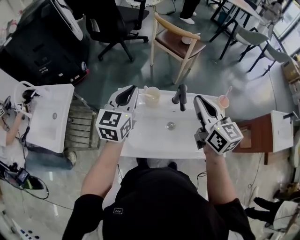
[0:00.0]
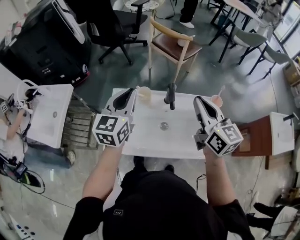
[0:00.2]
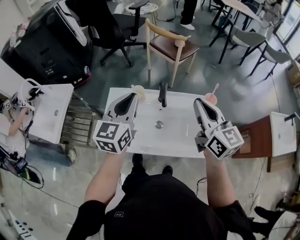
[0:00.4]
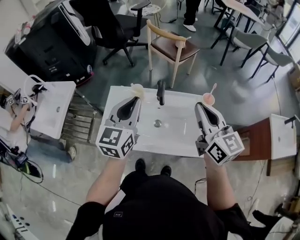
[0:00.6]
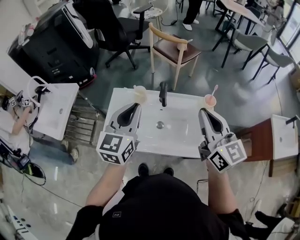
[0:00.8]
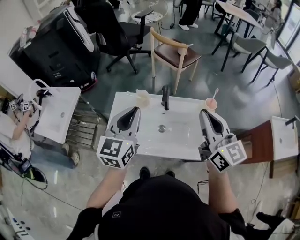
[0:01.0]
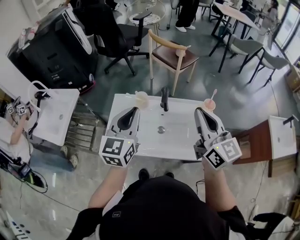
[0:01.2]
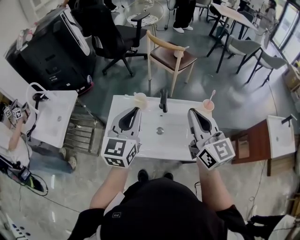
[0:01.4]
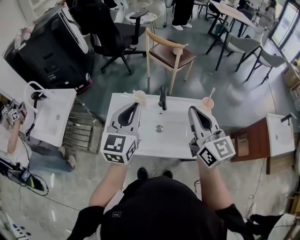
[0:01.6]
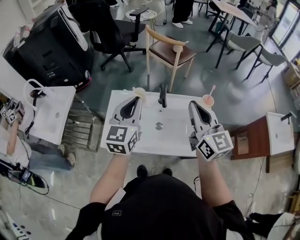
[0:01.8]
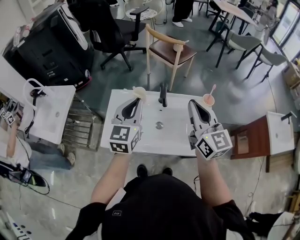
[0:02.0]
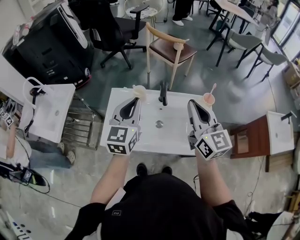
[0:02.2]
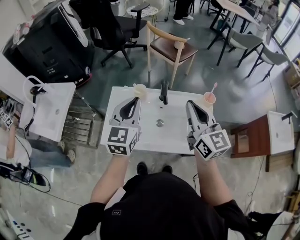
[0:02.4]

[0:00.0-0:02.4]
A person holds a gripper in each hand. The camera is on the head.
0:00.0 to 0:01.2: Both grippers travel together backward, to the right and upward, approximately 20 cm.
0:01.2 to 0:02.4: The right gripper shifts by about 5 cm.

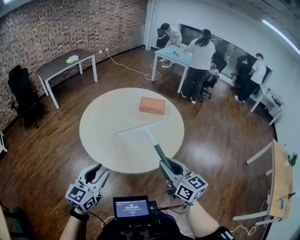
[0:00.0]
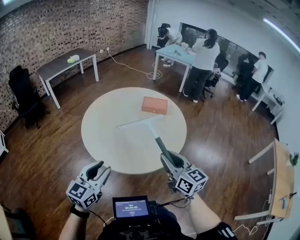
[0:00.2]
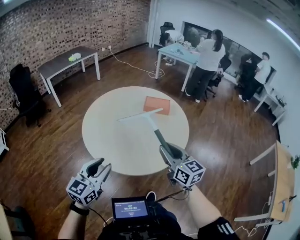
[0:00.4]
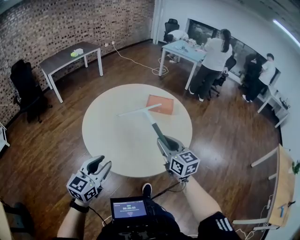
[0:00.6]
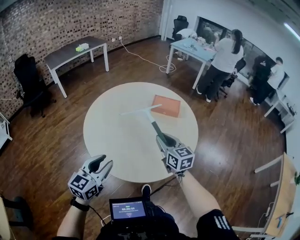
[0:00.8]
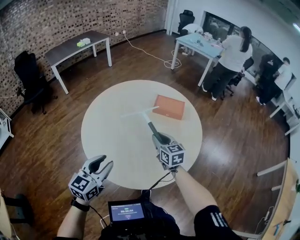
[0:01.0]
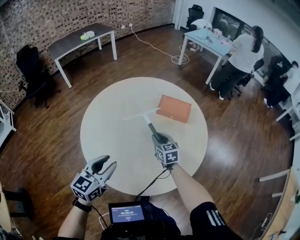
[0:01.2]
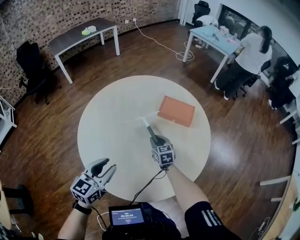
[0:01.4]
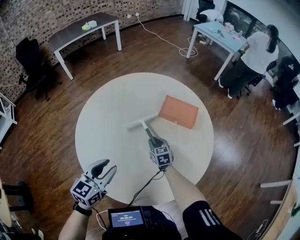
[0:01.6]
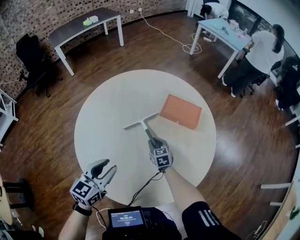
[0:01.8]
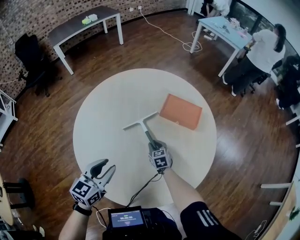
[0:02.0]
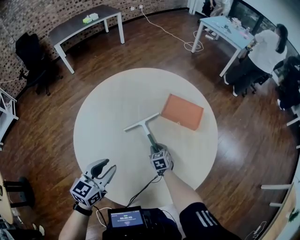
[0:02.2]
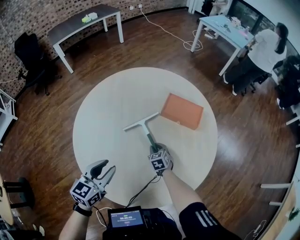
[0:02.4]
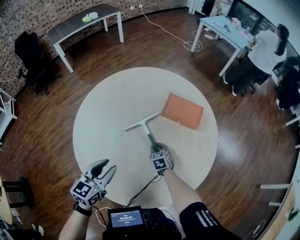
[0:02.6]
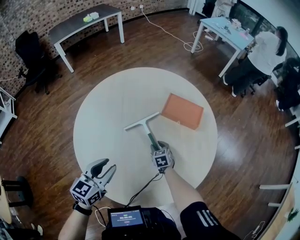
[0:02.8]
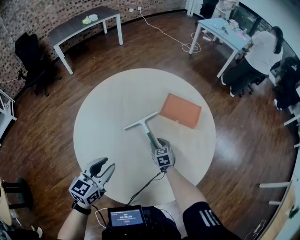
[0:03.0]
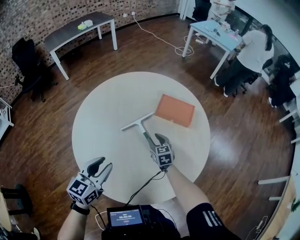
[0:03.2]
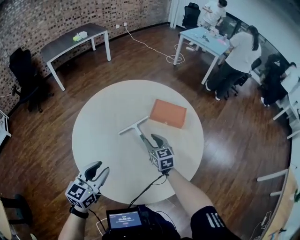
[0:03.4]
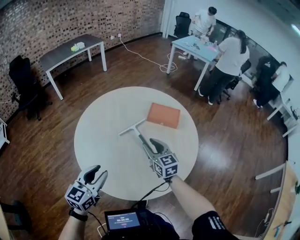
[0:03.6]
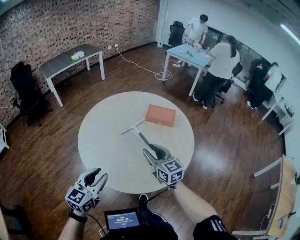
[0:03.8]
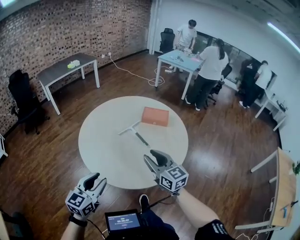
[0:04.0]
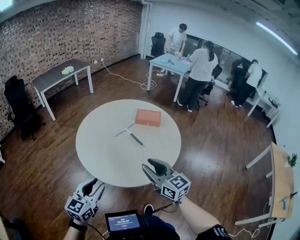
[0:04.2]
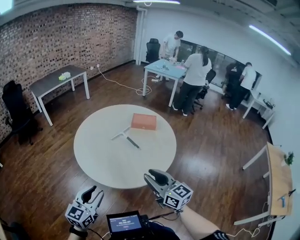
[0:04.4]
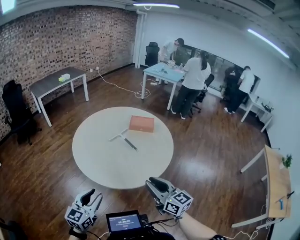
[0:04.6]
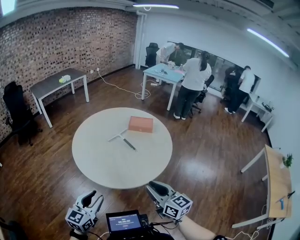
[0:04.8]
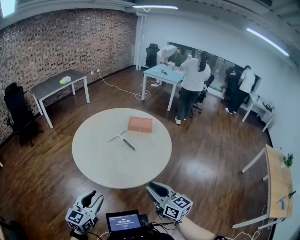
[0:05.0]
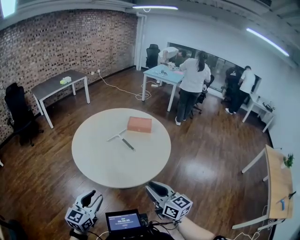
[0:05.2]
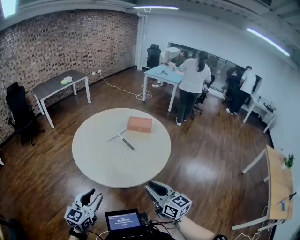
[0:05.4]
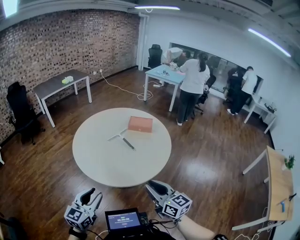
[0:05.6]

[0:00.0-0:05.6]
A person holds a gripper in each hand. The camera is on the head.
0:00.0 to 0:01.4: The left gripper travels forward and downward by about 30 cm, while the right gripper shifts about 60 cm forward and downward, and angles its fingers downward, by some 30 degrees.
0:01.4 to 0:02.8: The left gripper goes approximately 5 cm forward; the right gripper travels downward by roughly 10 cm.
0:02.8 to 0:04.2: The left gripper travels backward and upward by approximately 35 cm; the right gripper moves upward and backward, roughly 60 cm, and angles its fingers upward, by roughly 50 degrees.
0:04.2 to 0:05.6: The grippers both shift backward and to the right by approximately 15 cm.

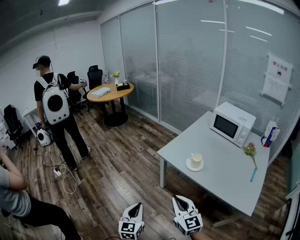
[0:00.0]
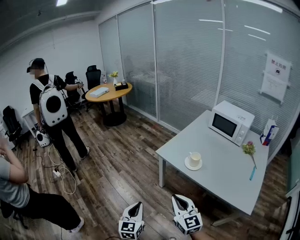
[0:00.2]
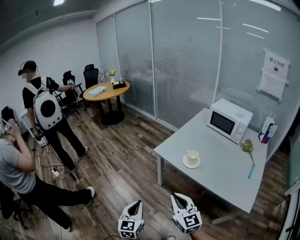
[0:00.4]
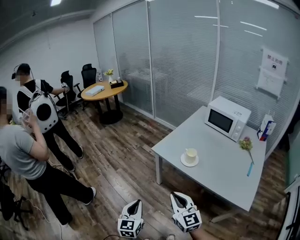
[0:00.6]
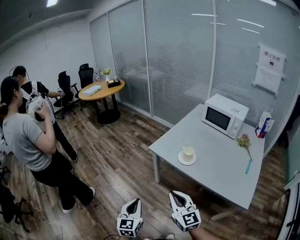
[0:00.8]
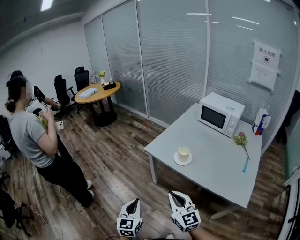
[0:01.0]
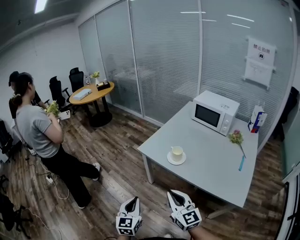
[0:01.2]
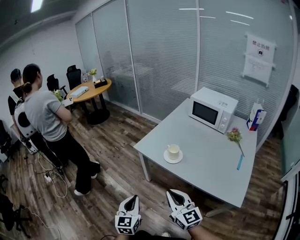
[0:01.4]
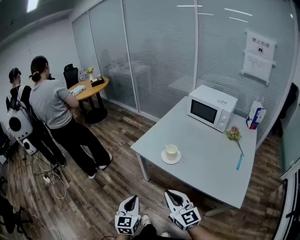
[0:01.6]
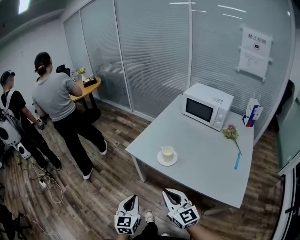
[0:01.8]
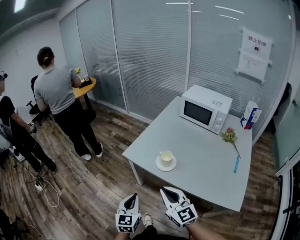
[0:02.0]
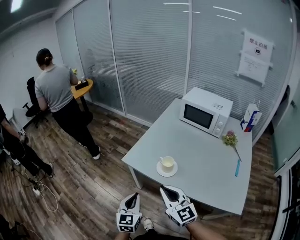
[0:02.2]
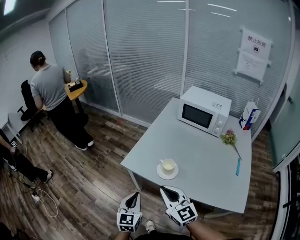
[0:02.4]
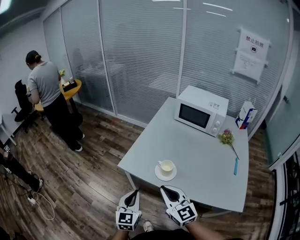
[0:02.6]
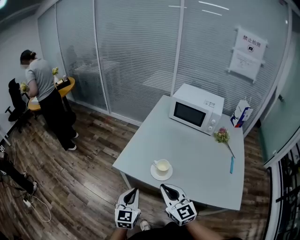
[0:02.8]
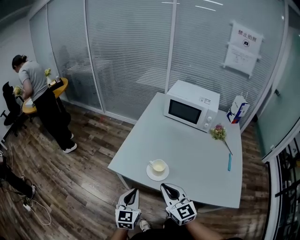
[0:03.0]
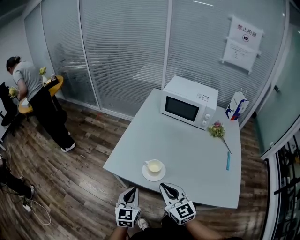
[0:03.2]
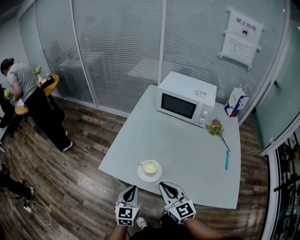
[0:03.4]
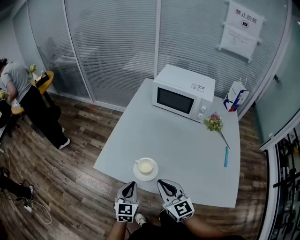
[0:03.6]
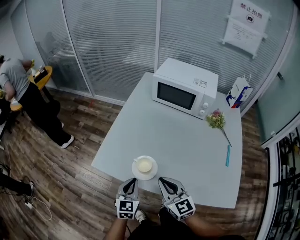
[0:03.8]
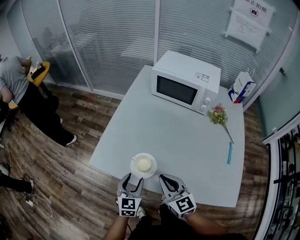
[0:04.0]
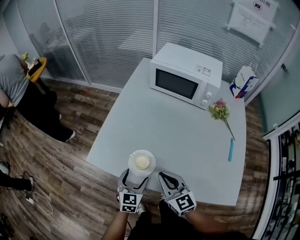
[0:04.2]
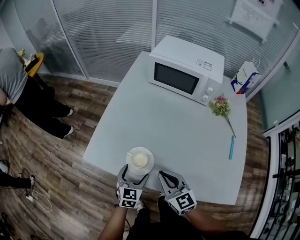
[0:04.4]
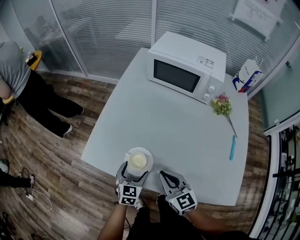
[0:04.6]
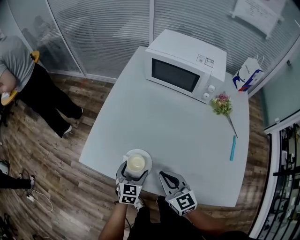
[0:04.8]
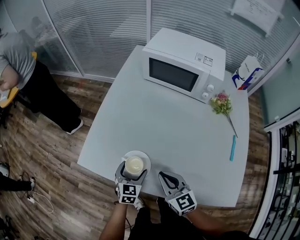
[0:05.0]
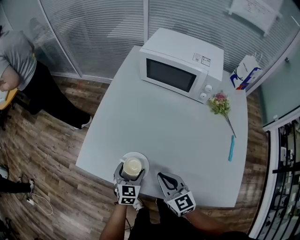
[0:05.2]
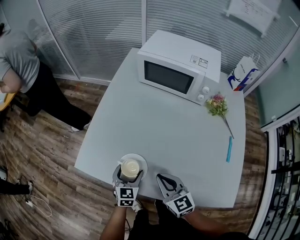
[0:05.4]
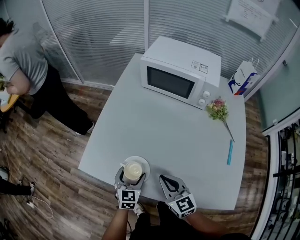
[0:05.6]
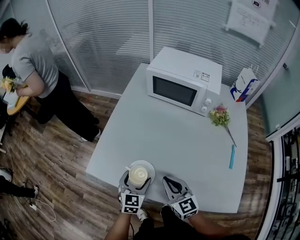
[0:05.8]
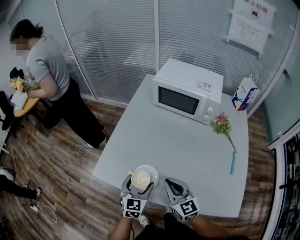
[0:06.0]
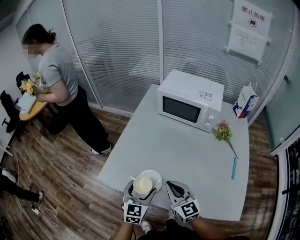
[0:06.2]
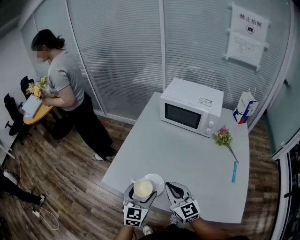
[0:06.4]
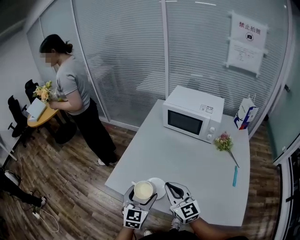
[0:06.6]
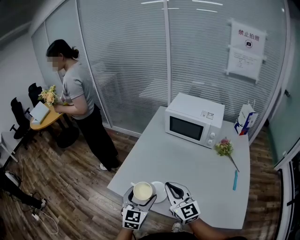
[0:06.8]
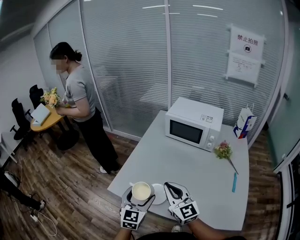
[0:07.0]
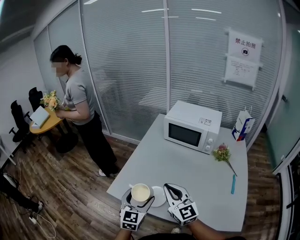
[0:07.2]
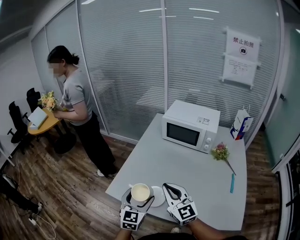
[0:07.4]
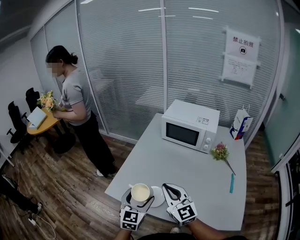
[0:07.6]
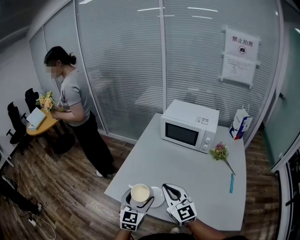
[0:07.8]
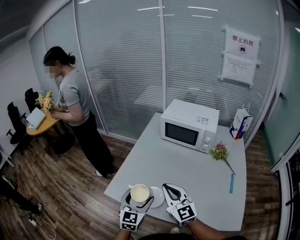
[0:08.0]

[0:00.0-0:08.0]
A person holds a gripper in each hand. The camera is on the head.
0:00.0 to 0:01.6: The two grippers go approximately 10 cm to the right.
0:01.6 to 0:03.2: The grippers both shift forward by about 20 cm.
0:03.2 to 0:04.8: The right gripper heads downward, to the right and forward, covering about 15 cm. Meanwhile the left gripper is displaced downward, forward and to the right by roughly 25 cm, turns by about 20 degrees, and opens.
0:04.8 to 0:06.4: The right gripper moves upward, about 10 cm. Meanwhile the left gripper moves upward, approximately 15 cm.
0:06.4 to 0:08.0: The right gripper travels upward by about 5 cm, while the left gripper shifts by approximately 5 cm.

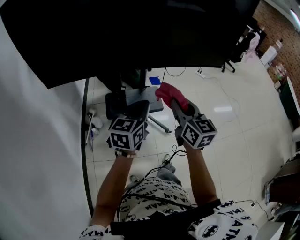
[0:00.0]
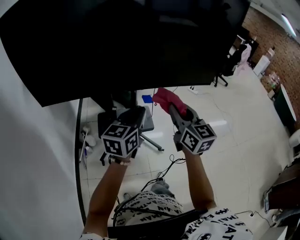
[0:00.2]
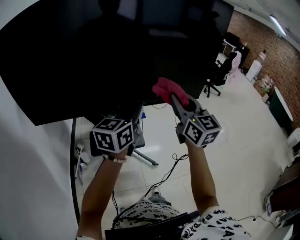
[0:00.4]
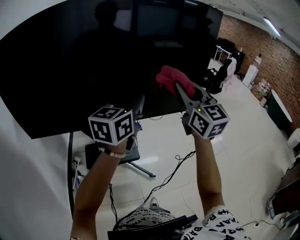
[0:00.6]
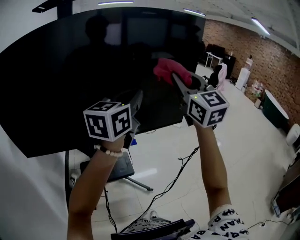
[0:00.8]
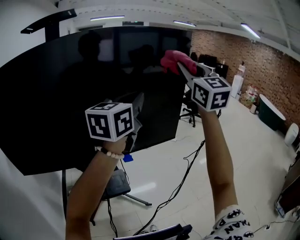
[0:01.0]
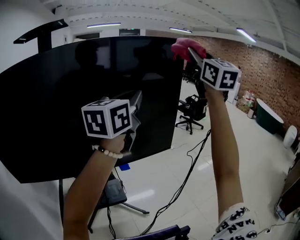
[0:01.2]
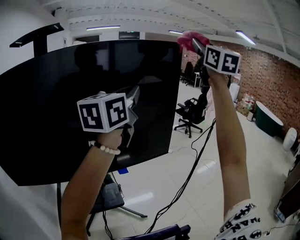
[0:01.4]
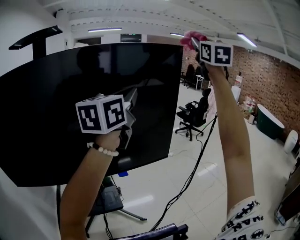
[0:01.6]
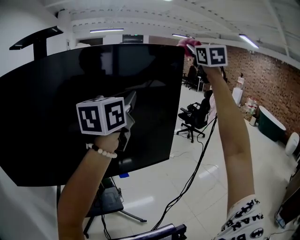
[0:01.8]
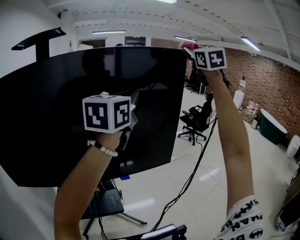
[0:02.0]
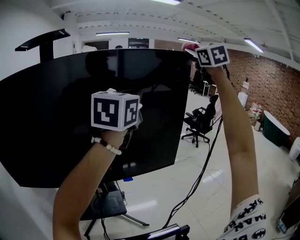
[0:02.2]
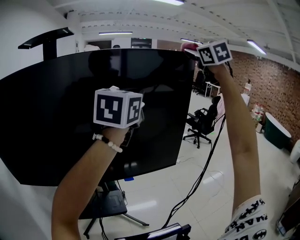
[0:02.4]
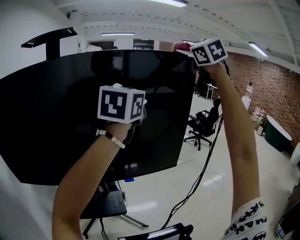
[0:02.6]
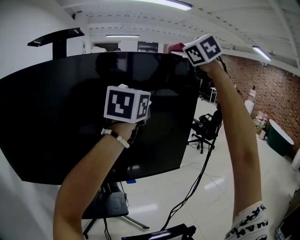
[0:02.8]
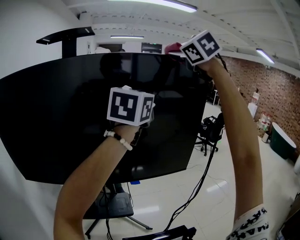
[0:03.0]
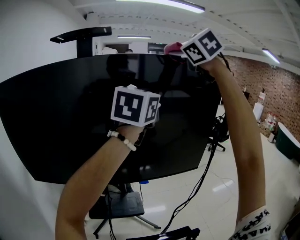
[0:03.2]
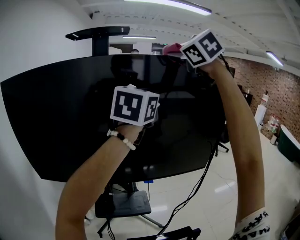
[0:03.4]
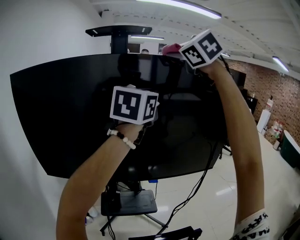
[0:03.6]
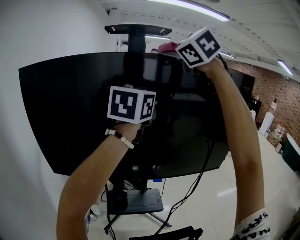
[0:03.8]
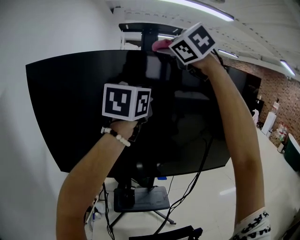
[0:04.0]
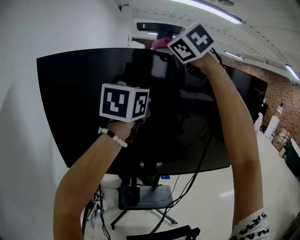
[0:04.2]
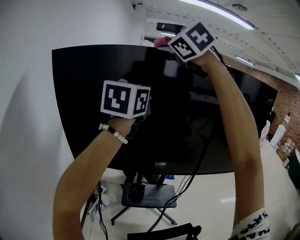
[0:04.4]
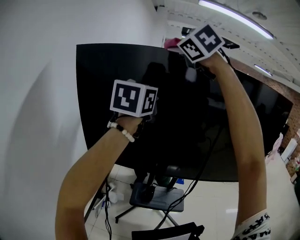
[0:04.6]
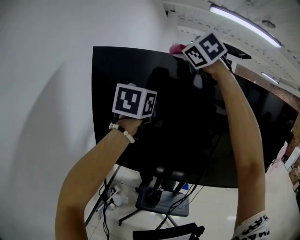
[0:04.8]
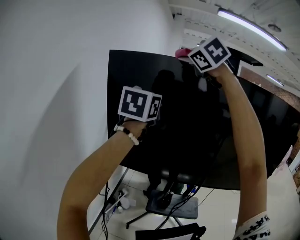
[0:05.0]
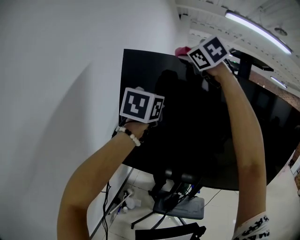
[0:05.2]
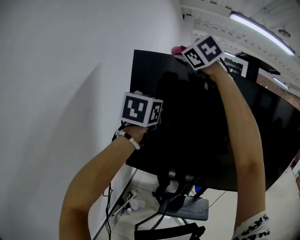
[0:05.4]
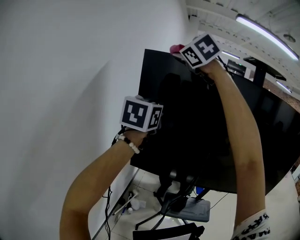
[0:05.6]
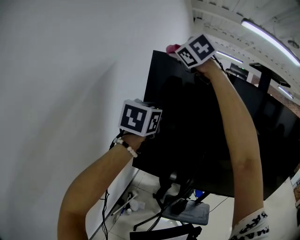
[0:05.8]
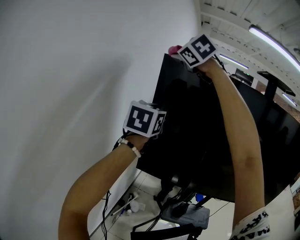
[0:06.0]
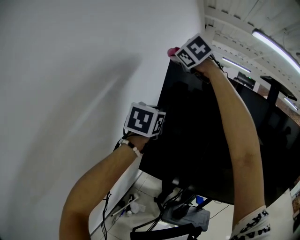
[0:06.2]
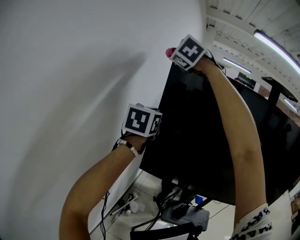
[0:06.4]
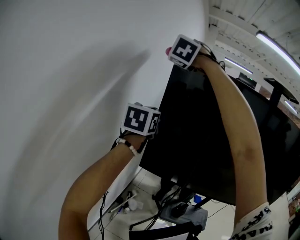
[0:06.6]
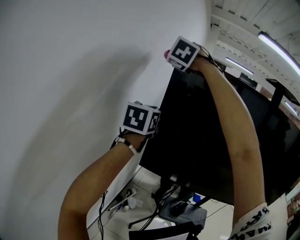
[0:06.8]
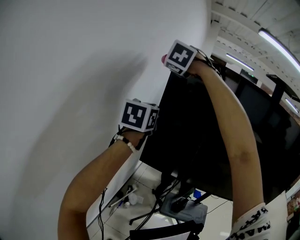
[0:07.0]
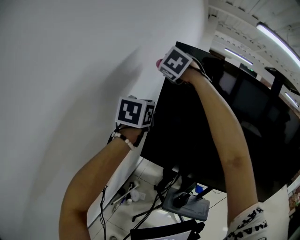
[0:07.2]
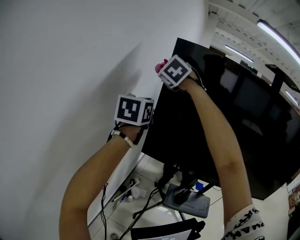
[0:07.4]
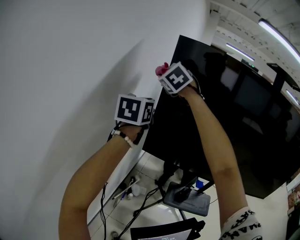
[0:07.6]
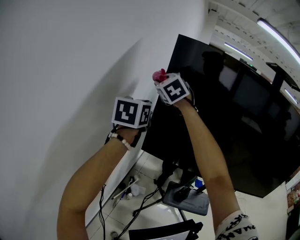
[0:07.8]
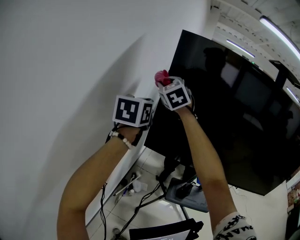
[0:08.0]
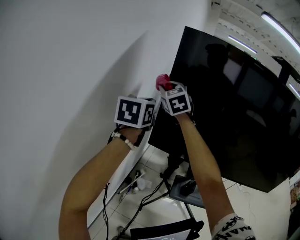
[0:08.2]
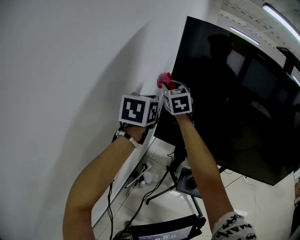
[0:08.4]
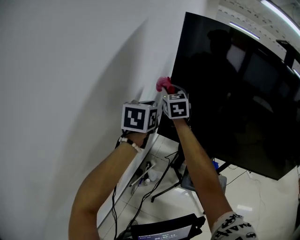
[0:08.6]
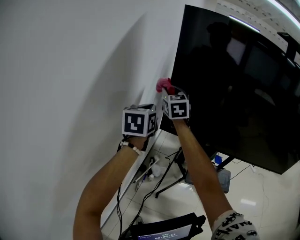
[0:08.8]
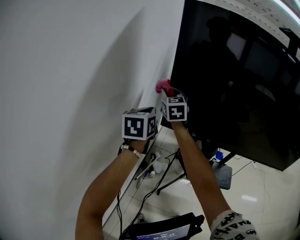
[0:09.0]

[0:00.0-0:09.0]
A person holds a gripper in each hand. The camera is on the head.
0:00.0 to 0:01.6: The left gripper heads upward, forward and to the right, covering some 50 cm, and swivels roughly 20 degrees, while the right gripper heads upward, to the right and forward, covering approximately 80 cm, and changes its angle by some 50 degrees.
0:01.6 to 0:03.0: The right gripper shifts about 25 cm to the left, and rotates about 40 degrees. Meanwhile the left gripper heads to the left, covering roughly 5 cm, and swivels about 20 degrees.
0:03.0 to 0:04.4: Both grippers are carried to the left, about 50 cm. The right gripper changes its angle by roughly 20 degrees.
0:04.4 to 0:06.0: The two grippers go approximately 40 cm to the left.
0:06.0 to 0:07.6: The right gripper travels downward by approximately 20 cm. Meanwhile the left gripper shifts some 10 cm downward and to the left.
0:07.6 to 0:09.0: Both grippers travel together downward, some 20 cm. The right gripper swivels some 40 degrees.
